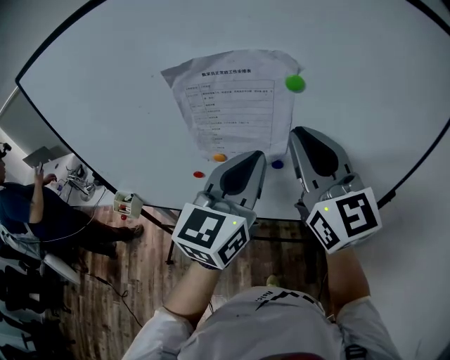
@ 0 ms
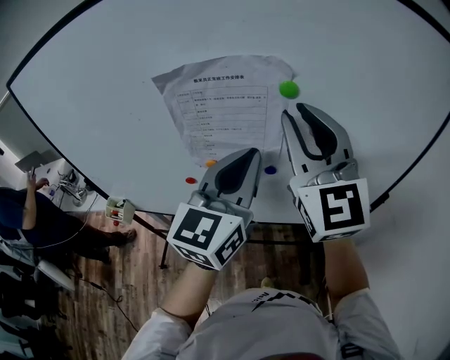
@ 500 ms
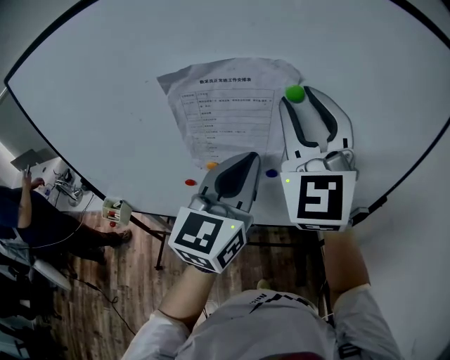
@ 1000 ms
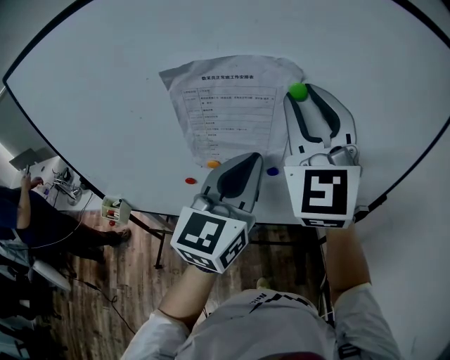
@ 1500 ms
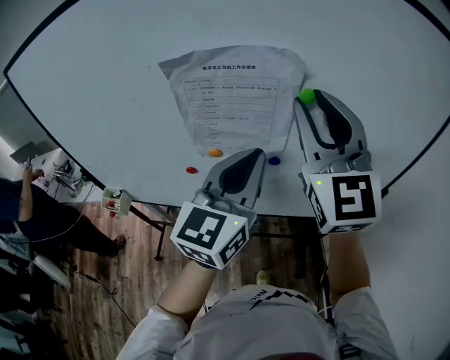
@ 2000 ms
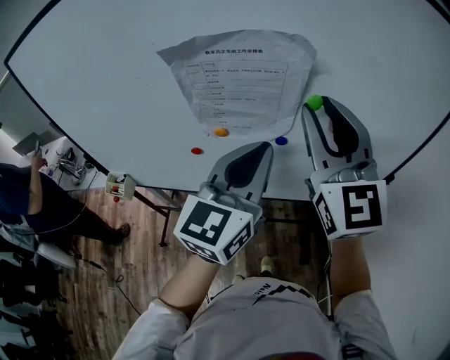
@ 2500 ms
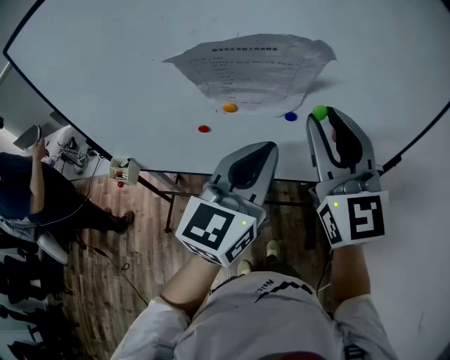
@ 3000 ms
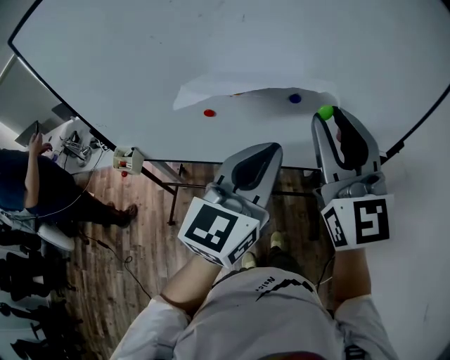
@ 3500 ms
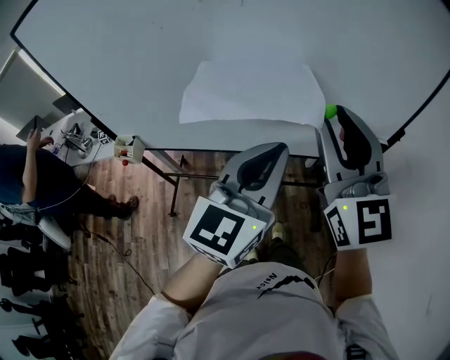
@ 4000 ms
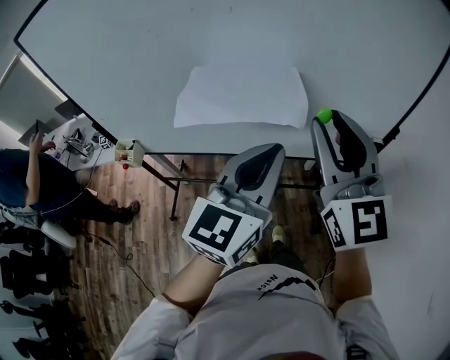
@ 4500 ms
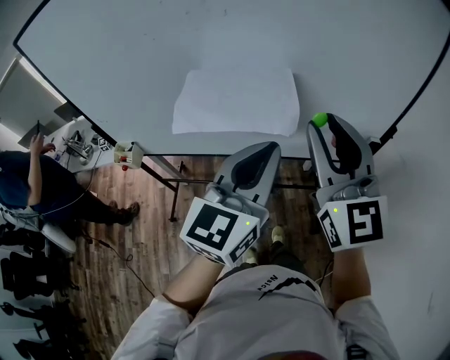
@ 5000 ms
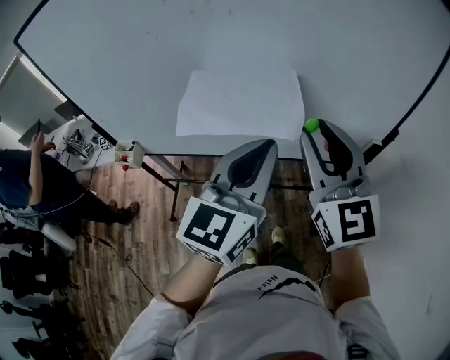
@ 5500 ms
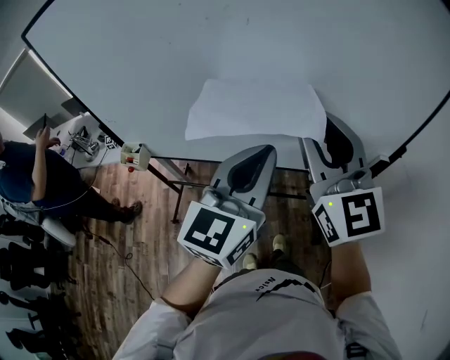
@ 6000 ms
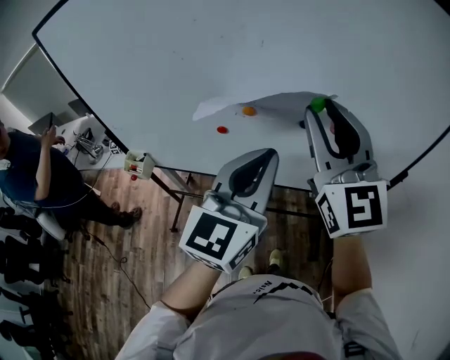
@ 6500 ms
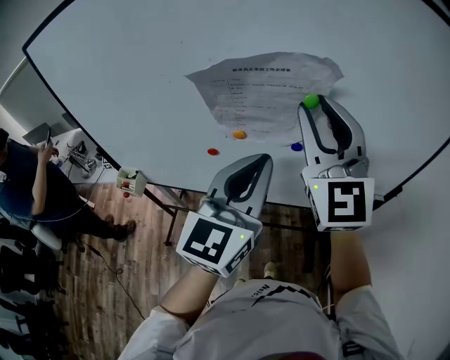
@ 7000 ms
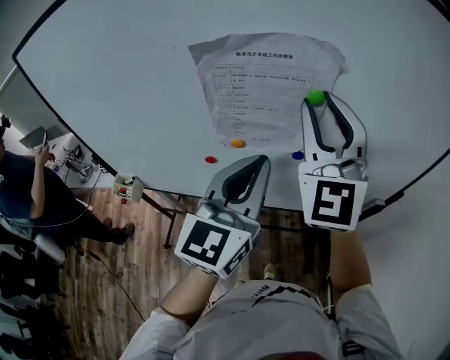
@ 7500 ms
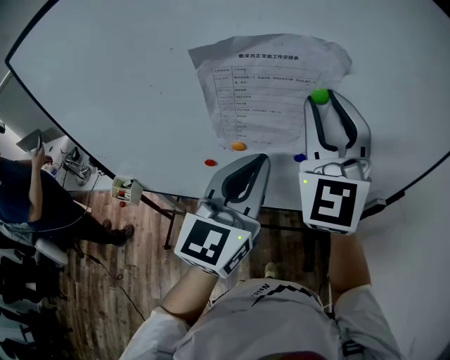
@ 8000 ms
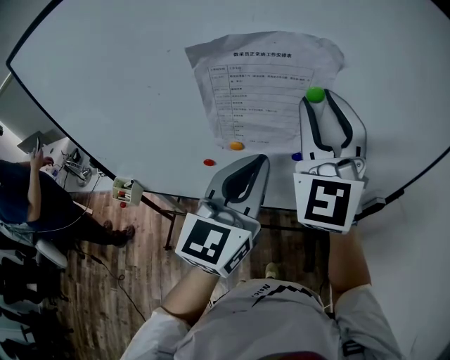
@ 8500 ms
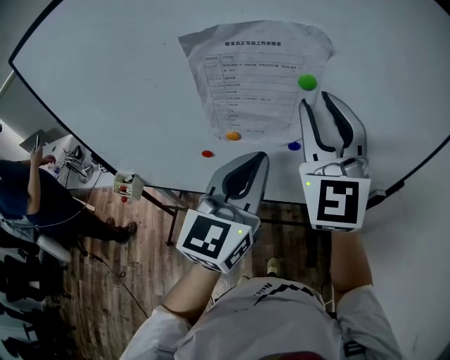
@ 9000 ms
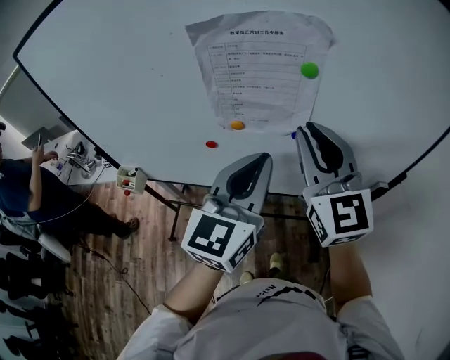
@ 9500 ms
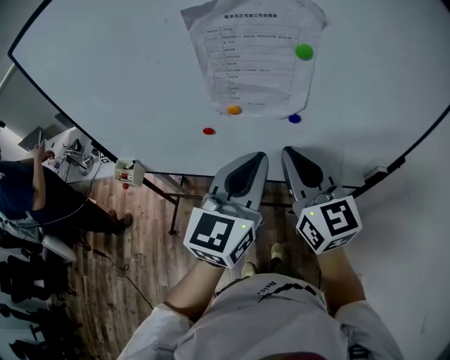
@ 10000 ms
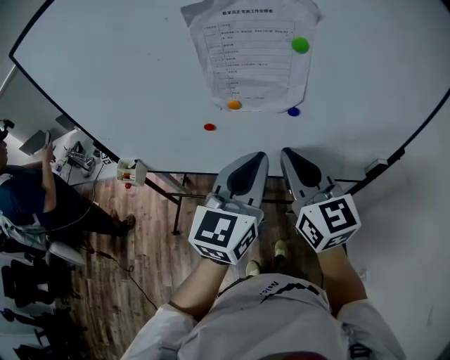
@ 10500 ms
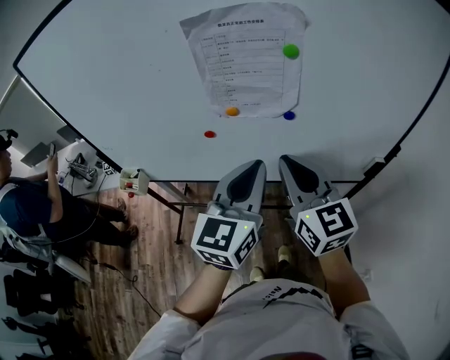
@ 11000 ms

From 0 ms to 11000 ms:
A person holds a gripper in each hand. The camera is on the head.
From 0 ms to 2000 ms: The right gripper moves upward, roughly 5 cm, swivels about 20 degrees, and opens its fingers.
From 2000 ms to 3500 ms: The left gripper is displaced backward by about 10 cm. The right gripper shifts some 15 cm backward and downward.
From 3500 ms to 5500 ms: The right gripper shifts by some 5 cm.
From 5500 ms to 7500 ms: The right gripper travels forward and upward by approximately 20 cm, and changes its angle by some 30 degrees; the left gripper goes roughly 10 cm forward.
From 7500 ms to 9000 ms: The grippers make only small movements.
From 9000 ms to 11000 ms: The right gripper goes roughly 20 cm downward and backward, turns by roughly 40 degrees, and closes its fingers. Meanwhile the left gripper moves backward and downward, about 10 cm.

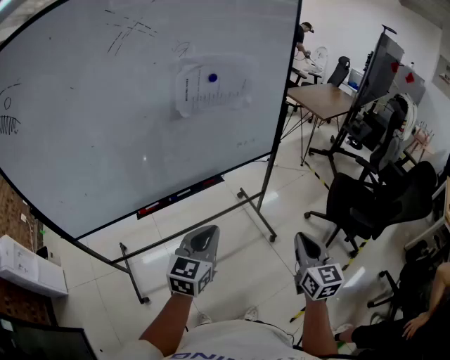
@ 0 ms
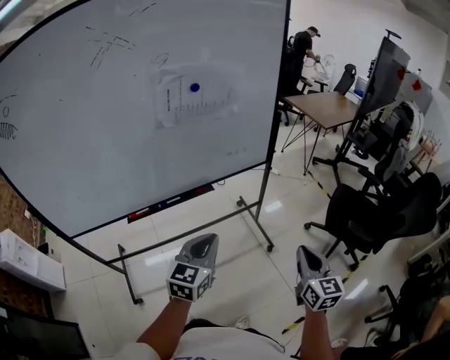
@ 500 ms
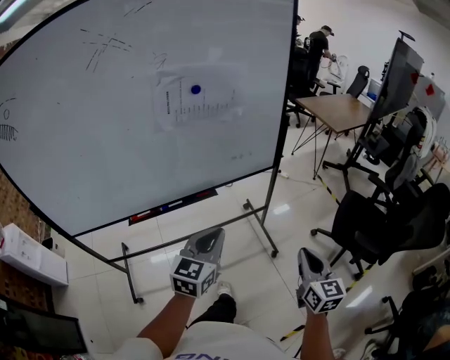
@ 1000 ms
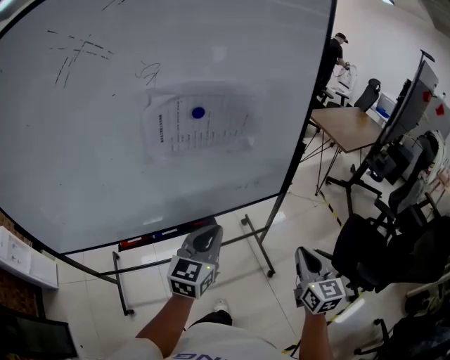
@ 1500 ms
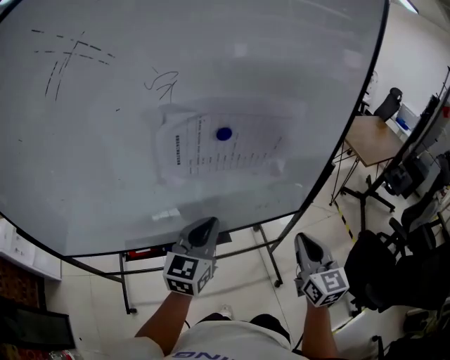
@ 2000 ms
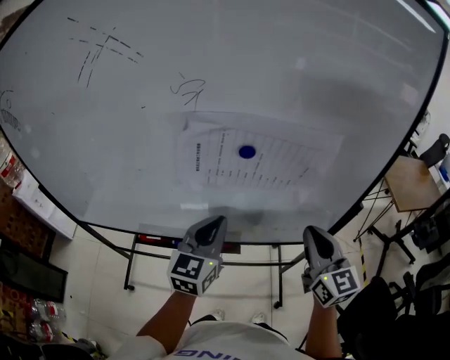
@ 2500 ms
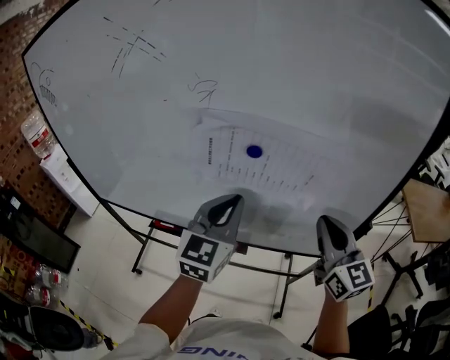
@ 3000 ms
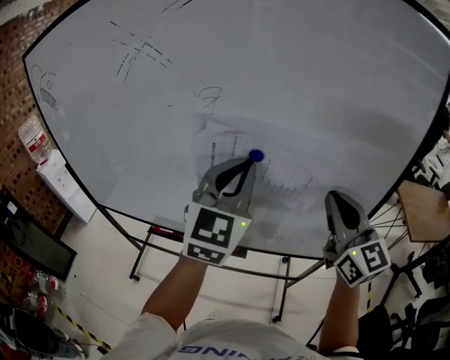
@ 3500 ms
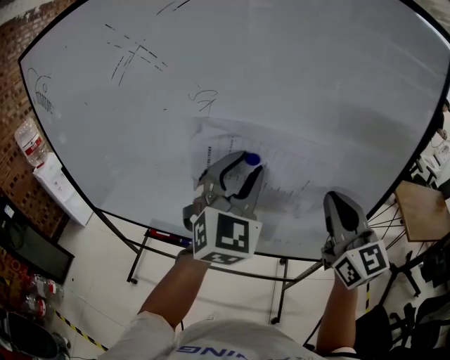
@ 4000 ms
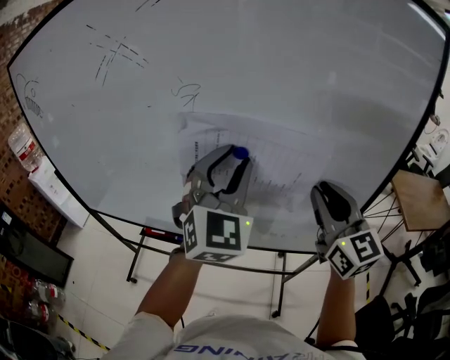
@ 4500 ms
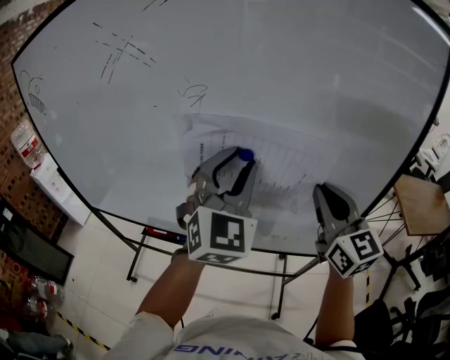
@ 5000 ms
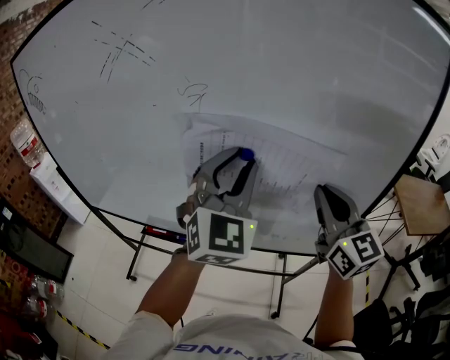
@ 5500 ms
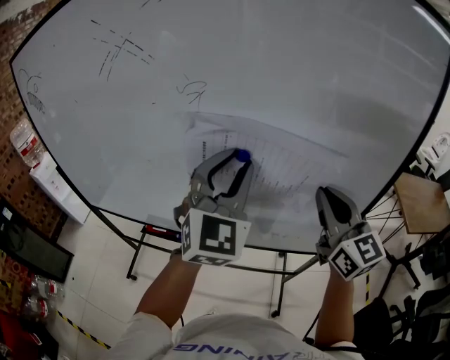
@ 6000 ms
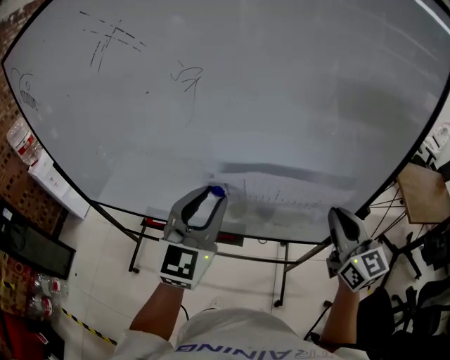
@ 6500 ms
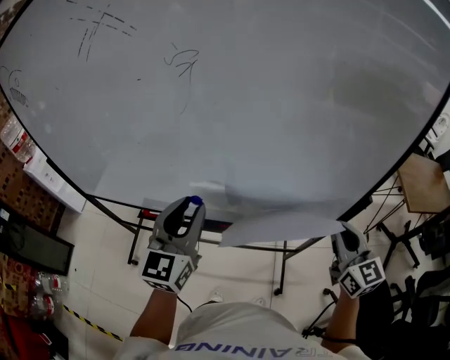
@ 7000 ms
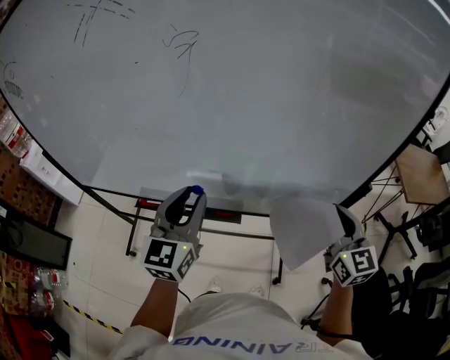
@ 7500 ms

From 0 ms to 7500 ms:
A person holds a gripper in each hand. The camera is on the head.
From 0 ms to 2000 ms: Both grippers travel together forward, approximately 30 cm.
From 2000 ms to 4000 ms: Both grippers travel together upward, approximately 20 cm. The right gripper turns by some 40 degrees. Meanwhile the left gripper changes its angle by some 50 degrees, and opens its fingers.
From 4000 ms to 5500 ms: The grippers make only small movements.
From 5500 ms to 7500 ms: The right gripper is displaced downward, to the right and backward by some 15 cm. The left gripper is displaced downward and to the left by about 20 cm, and swivels approximately 40 degrees.

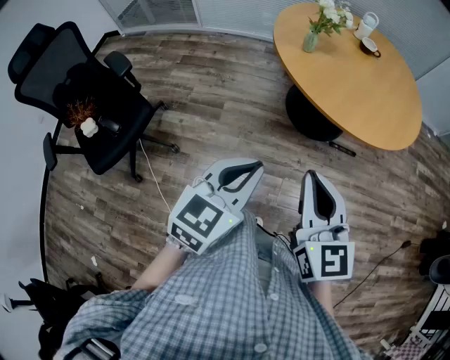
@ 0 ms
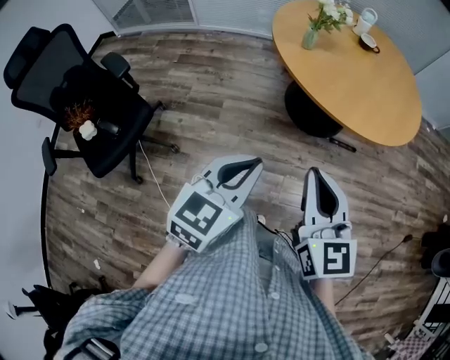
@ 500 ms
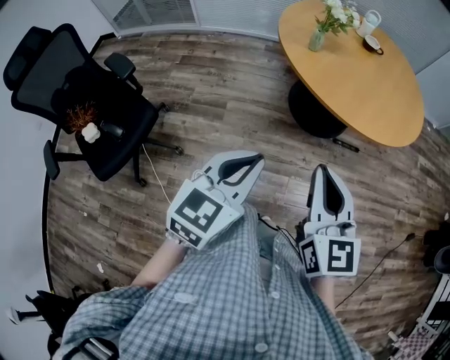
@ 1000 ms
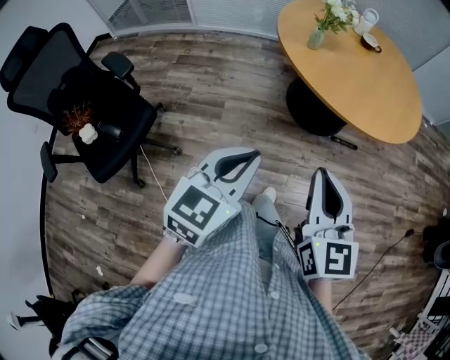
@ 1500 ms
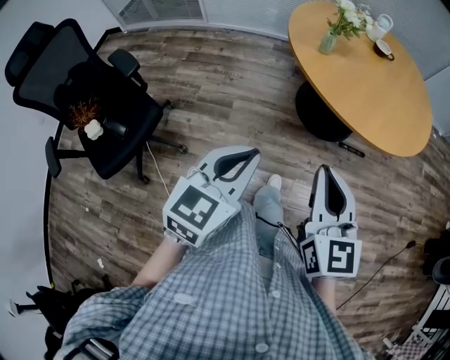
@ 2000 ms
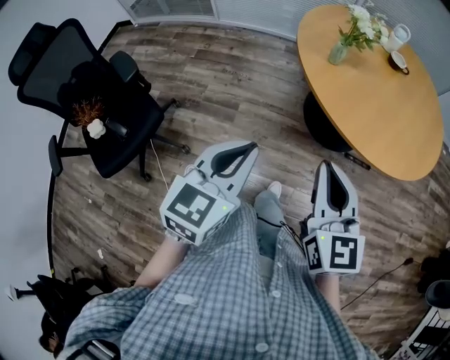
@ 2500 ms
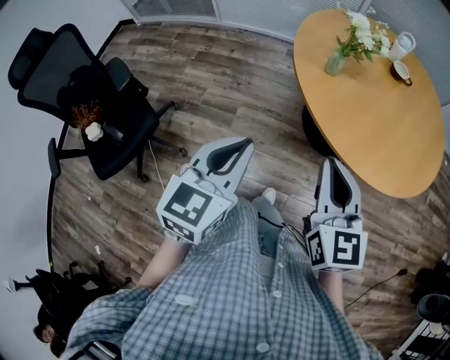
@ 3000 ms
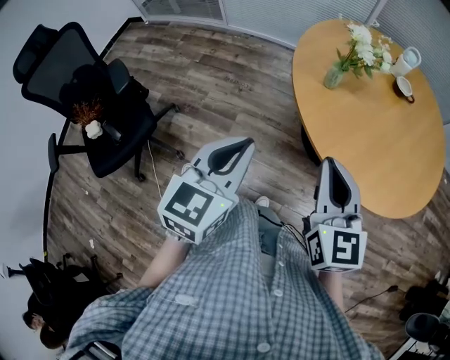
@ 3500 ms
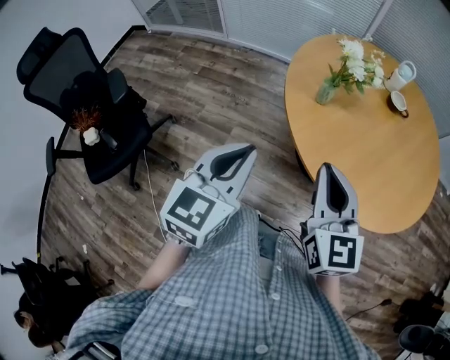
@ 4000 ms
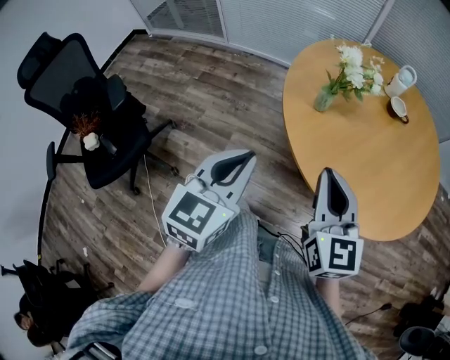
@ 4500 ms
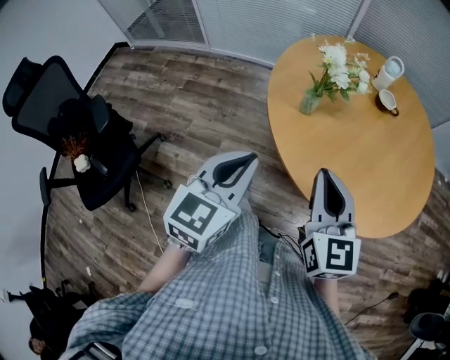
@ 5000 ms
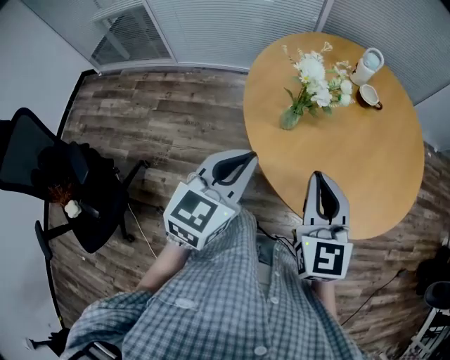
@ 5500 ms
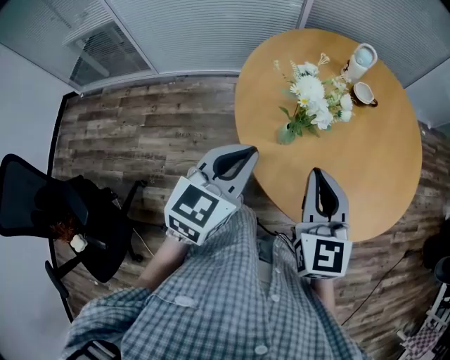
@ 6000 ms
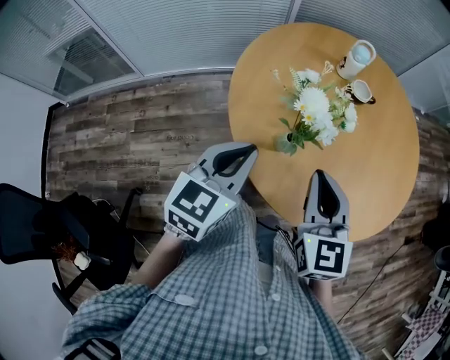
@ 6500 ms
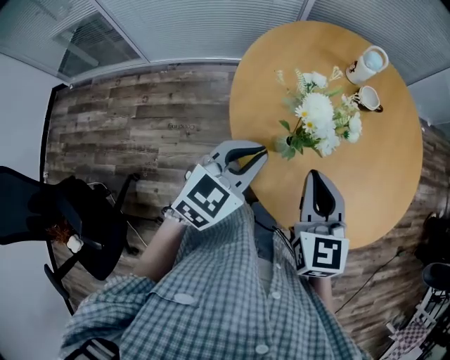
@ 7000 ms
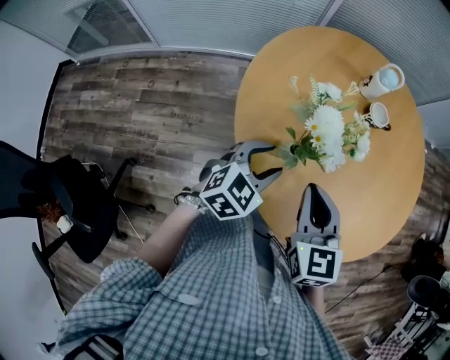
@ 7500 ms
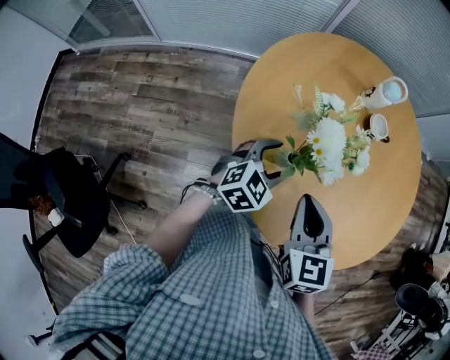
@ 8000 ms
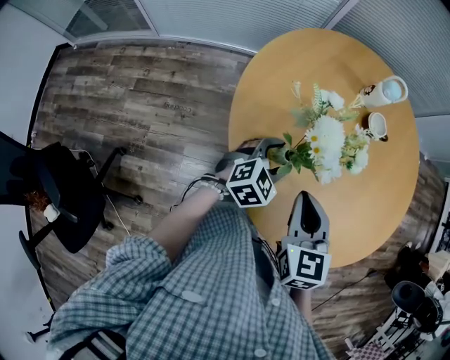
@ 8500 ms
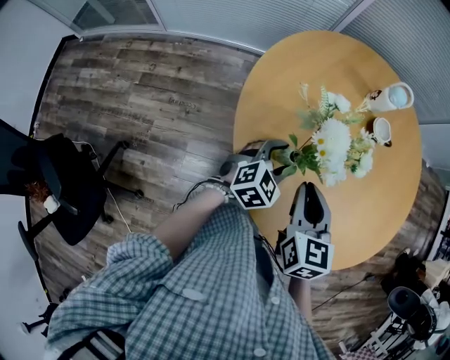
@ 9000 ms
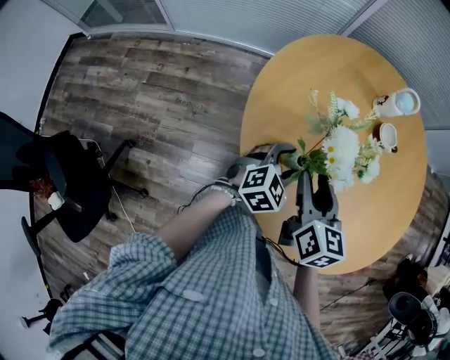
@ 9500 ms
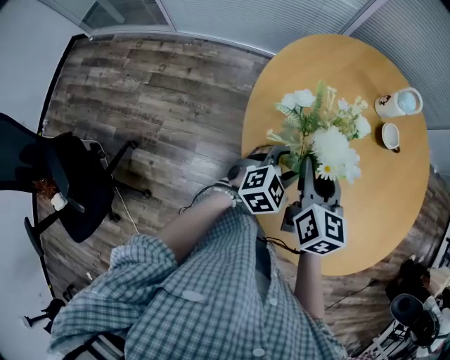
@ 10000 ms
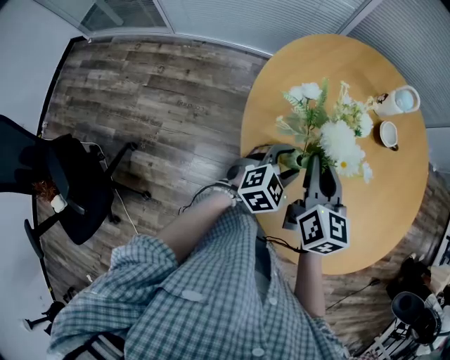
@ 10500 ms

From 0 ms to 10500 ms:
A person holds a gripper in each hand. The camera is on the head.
From 0 ms to 2000 ms: The right gripper ends up approximately 5 cm from where it was. Meanwhile the left gripper goes some 10 cm to the left.
From 2000 ms to 4000 ms: Both grippers move forward, approximately 25 cm.
From 4000 ms to 6500 ms: The right gripper shifts by approximately 25 cm, and swivels some 30 degrees; the left gripper ends up some 30 cm from where it was, and changes its angle by some 30 degrees.
From 6500 ms to 8500 ms: The left gripper travels downward, to the right and forward by approximately 20 cm, changes its angle by about 20 degrees, and opens. Meanwhile the right gripper shifts some 10 cm downward.
From 8500 ms to 10500 ms: The right gripper moves forward, about 10 cm, turns by roughly 20 degrees, and opens and closes again.
